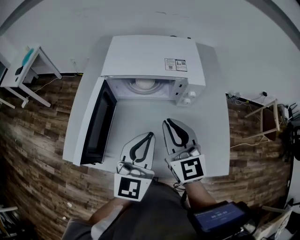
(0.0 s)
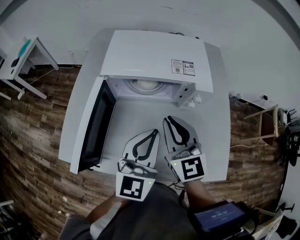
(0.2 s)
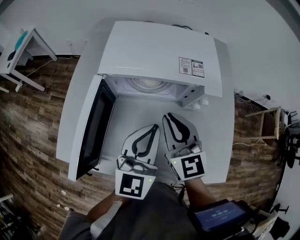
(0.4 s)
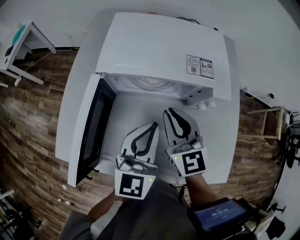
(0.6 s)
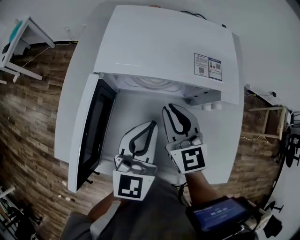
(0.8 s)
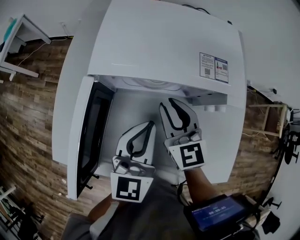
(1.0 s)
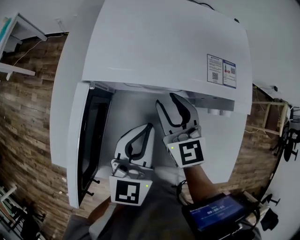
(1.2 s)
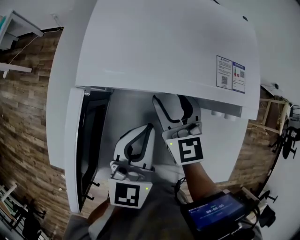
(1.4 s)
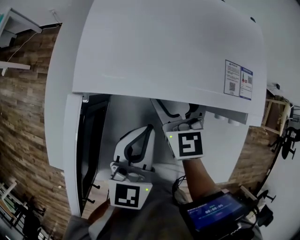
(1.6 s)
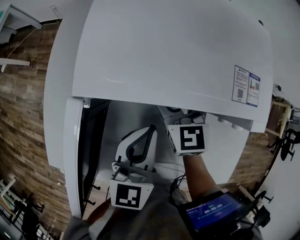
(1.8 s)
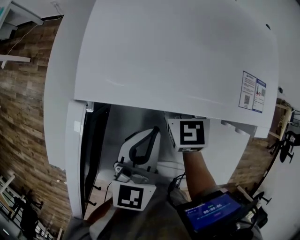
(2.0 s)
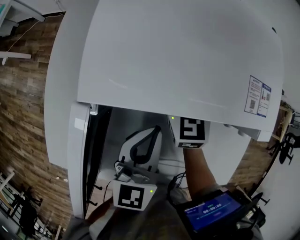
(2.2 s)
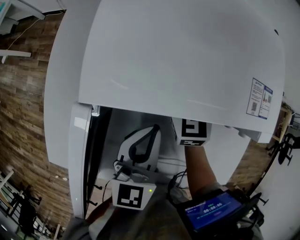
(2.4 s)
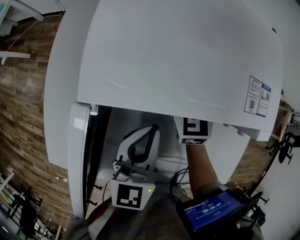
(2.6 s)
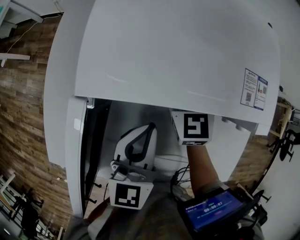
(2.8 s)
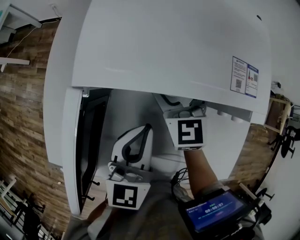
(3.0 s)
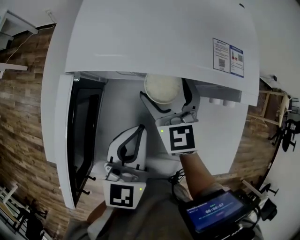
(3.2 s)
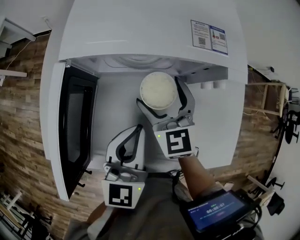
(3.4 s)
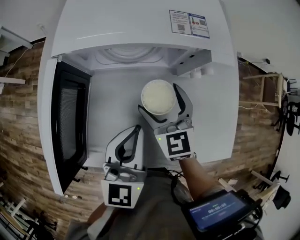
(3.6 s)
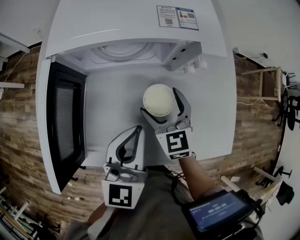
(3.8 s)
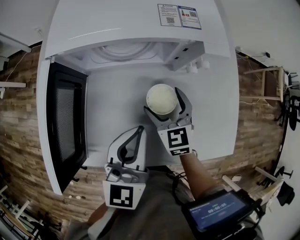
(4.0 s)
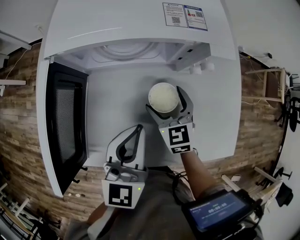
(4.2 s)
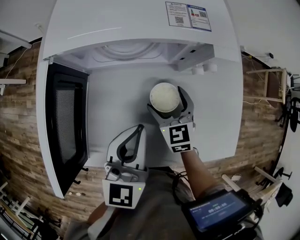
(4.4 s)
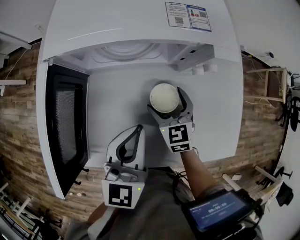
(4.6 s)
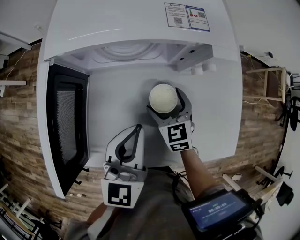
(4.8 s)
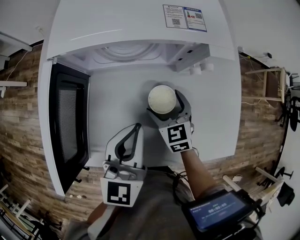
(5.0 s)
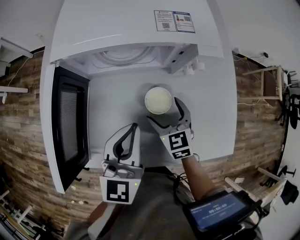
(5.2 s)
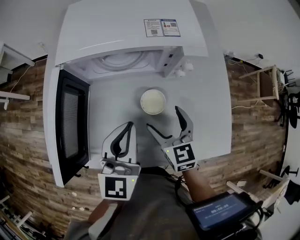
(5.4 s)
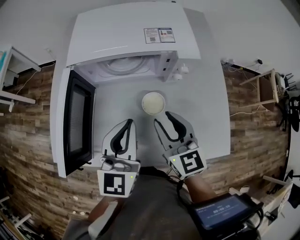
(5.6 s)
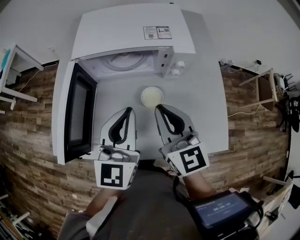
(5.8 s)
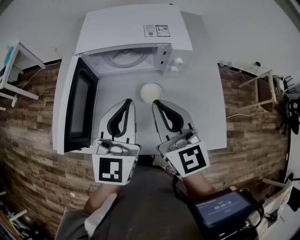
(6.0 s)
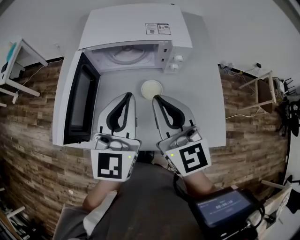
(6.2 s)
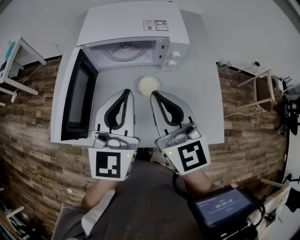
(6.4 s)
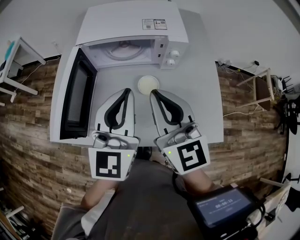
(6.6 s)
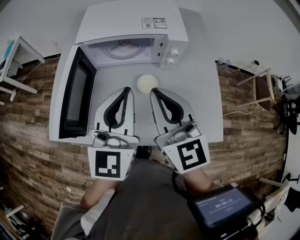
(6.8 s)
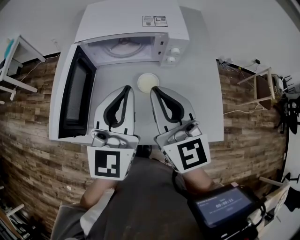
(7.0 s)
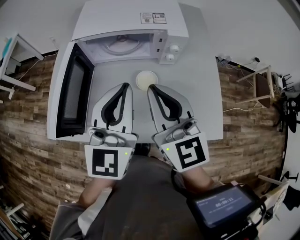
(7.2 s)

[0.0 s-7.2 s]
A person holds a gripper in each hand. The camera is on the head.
0.0 to 1.4 s: The two grippers go roughly 20 cm forward and downward. The right gripper opens up.
1.4 to 2.8 s: The right gripper moves forward, approximately 10 cm, and opens its fingers.
2.8 to 4.4 s: The left gripper is displaced backward and to the right by some 15 cm, while the right gripper moves backward and to the right, some 20 cm.
4.4 to 5.8 s: The left gripper moves upward, roughly 10 cm; the right gripper shifts about 25 cm upward and backward, turns by roughly 30 degrees, and closes its fingers.
5.8 to 7.2 s: Both grippers travel together upward, approximately 5 cm.

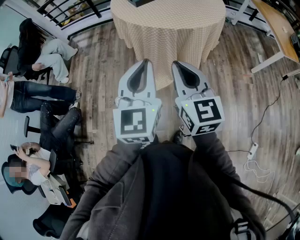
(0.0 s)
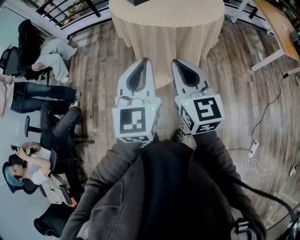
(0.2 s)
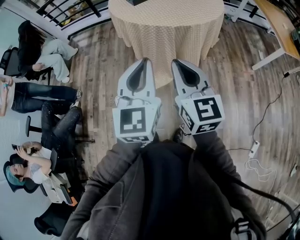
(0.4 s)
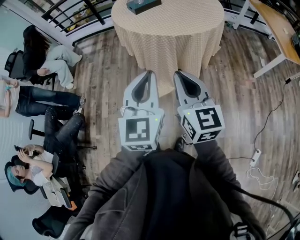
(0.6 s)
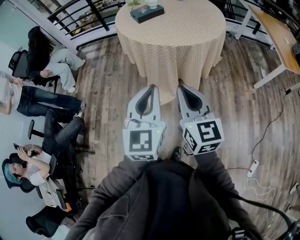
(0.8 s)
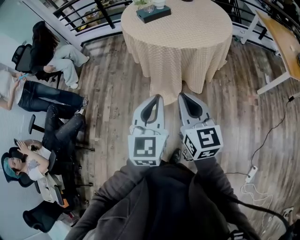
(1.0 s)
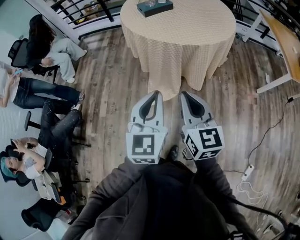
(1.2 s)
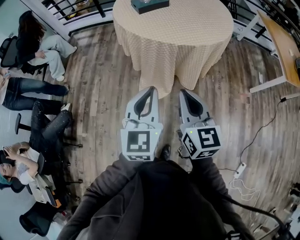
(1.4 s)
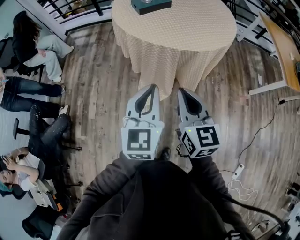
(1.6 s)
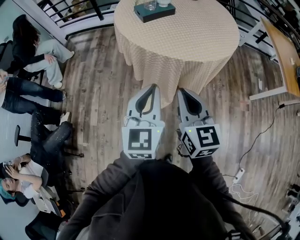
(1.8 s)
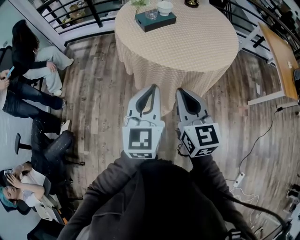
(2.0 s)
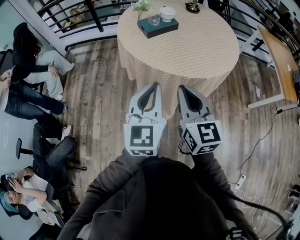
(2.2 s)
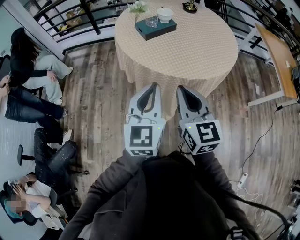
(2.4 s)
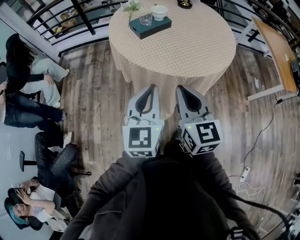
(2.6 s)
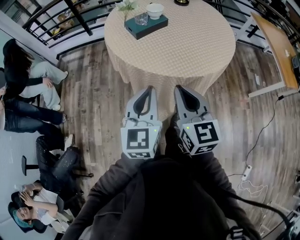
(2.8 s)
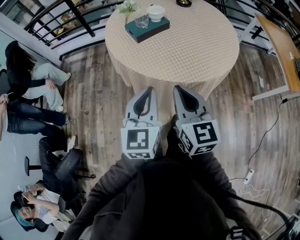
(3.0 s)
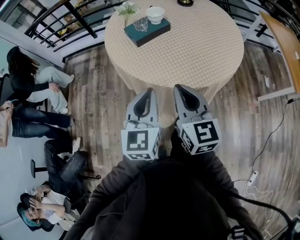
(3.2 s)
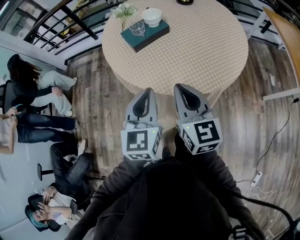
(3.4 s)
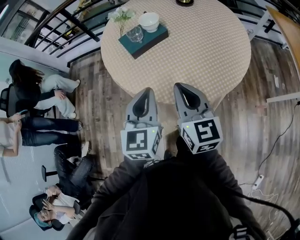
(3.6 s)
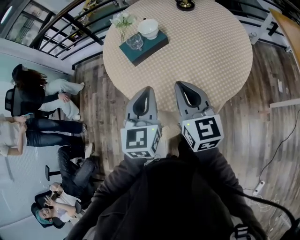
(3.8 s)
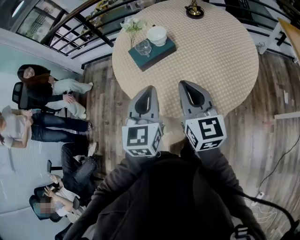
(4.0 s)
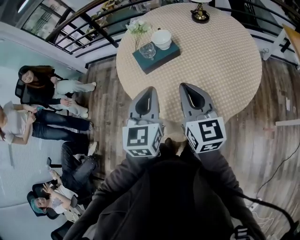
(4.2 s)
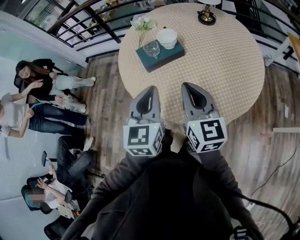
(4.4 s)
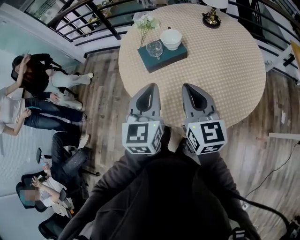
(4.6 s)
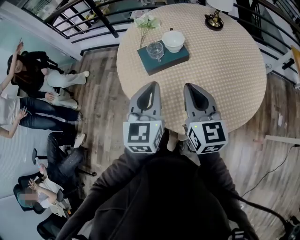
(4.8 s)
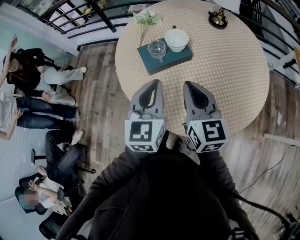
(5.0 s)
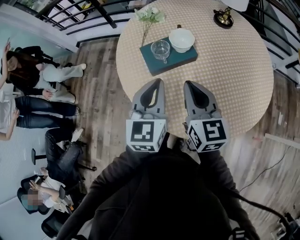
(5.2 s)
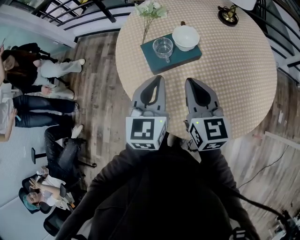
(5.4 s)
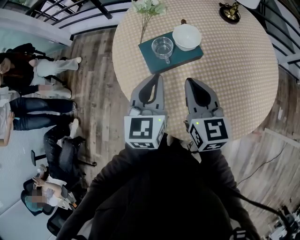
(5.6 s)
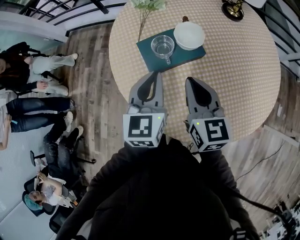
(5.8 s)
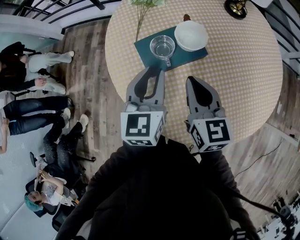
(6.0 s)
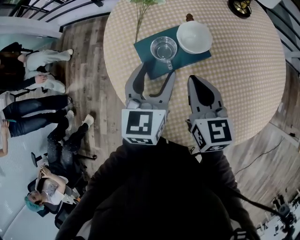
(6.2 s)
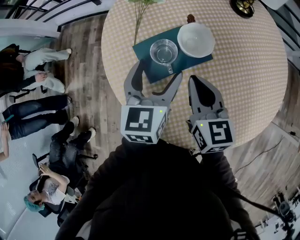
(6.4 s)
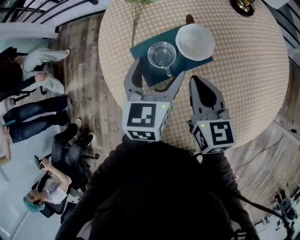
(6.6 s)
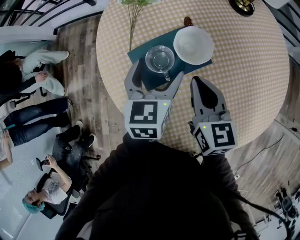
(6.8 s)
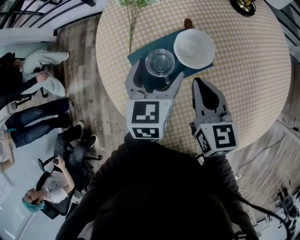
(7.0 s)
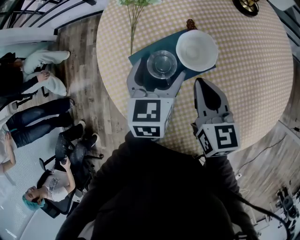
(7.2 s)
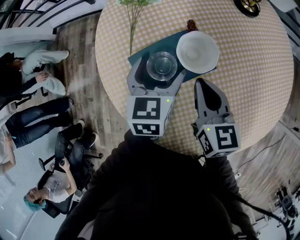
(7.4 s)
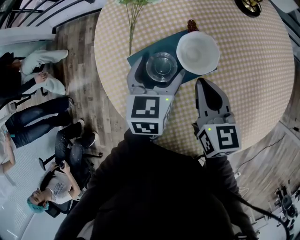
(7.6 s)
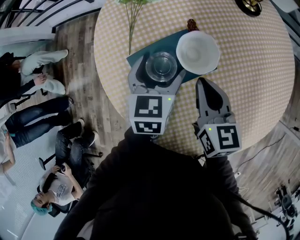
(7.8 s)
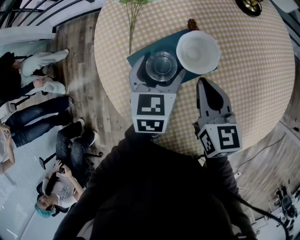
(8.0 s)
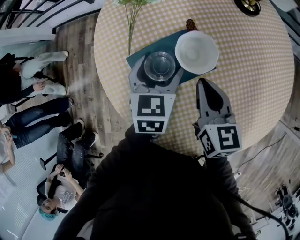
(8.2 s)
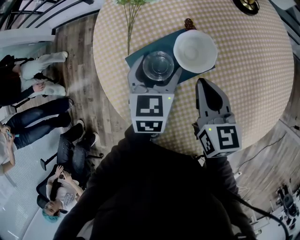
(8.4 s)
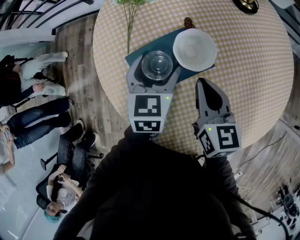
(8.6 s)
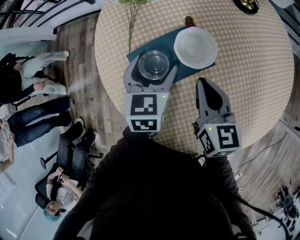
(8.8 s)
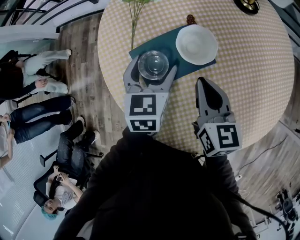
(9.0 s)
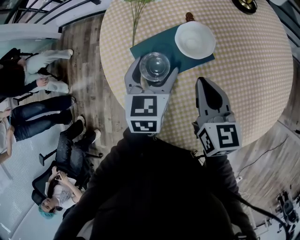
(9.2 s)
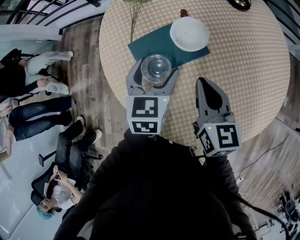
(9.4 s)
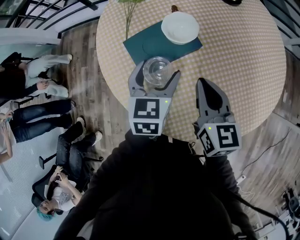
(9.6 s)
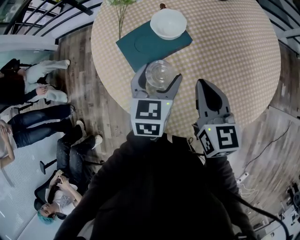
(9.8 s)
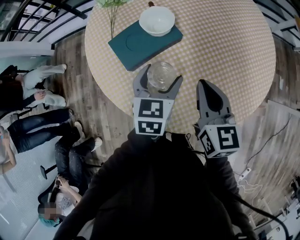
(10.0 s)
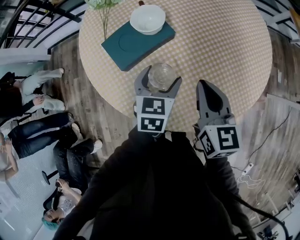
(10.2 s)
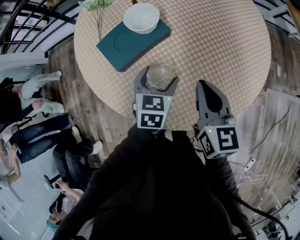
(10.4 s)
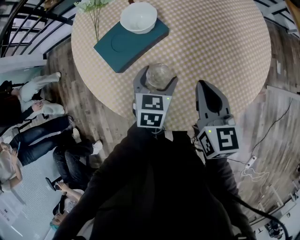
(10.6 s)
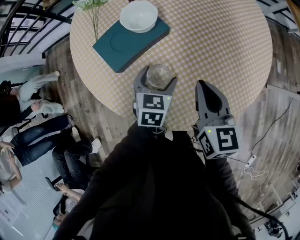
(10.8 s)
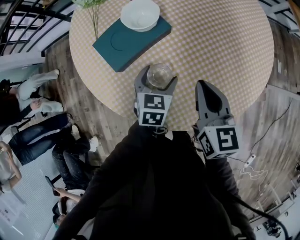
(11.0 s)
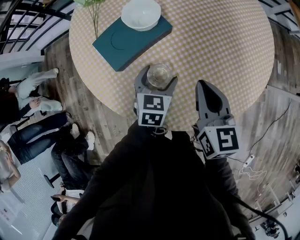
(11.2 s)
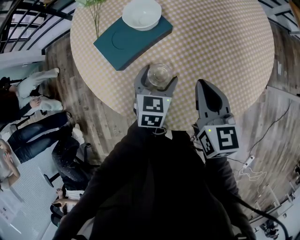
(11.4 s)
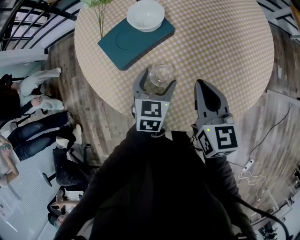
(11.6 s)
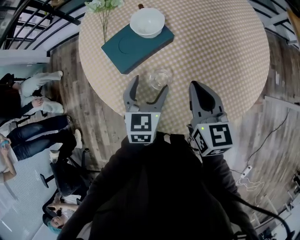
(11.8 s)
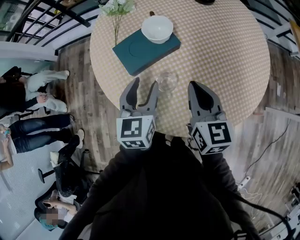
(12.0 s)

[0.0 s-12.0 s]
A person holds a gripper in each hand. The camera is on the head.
0.0 to 1.6 s: The two grippers go roughly 15 cm forward and downward.
1.6 to 3.0 s: The grippers both shift forward by some 20 cm.
3.0 to 4.4 s: The two grippers go roughly 20 cm forward and to the right.
4.4 to 6.0 s: Both grippers move forward and downward, approximately 25 cm.
6.0 to 7.6 s: The grippers both shift forward and downward by some 10 cm. The left gripper opens.
7.6 to 9.0 s: The grippers stay close to where they were, moving slightly.
9.0 to 10.4 s: The grippers both shift backward and to the right by some 20 cm.
10.4 to 12.0 s: The left gripper heads upward and to the left, covering approximately 10 cm, and changes its angle by roughly 20 degrees.

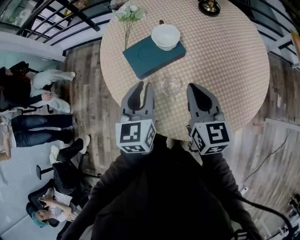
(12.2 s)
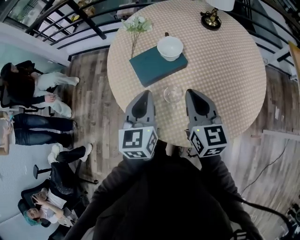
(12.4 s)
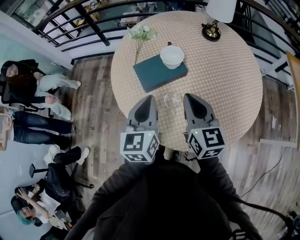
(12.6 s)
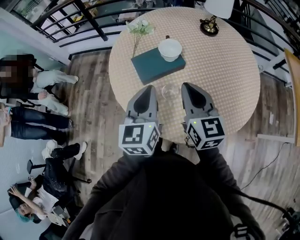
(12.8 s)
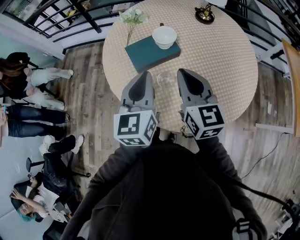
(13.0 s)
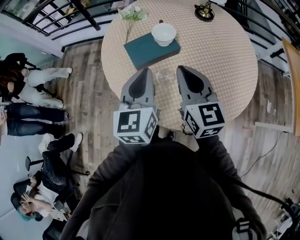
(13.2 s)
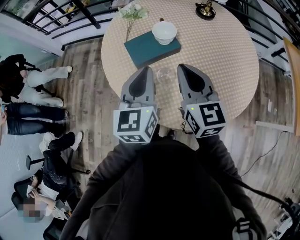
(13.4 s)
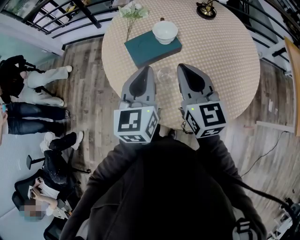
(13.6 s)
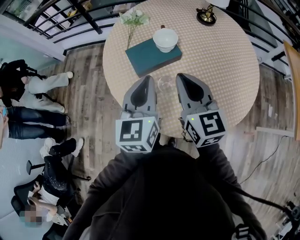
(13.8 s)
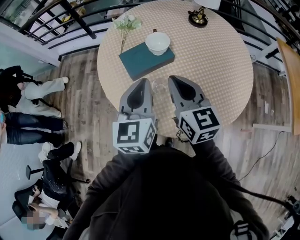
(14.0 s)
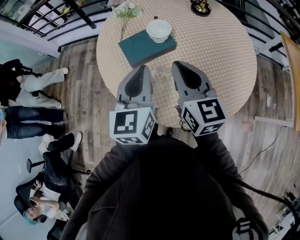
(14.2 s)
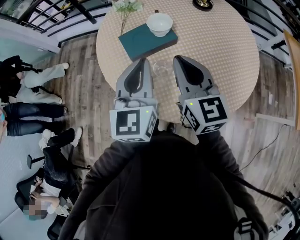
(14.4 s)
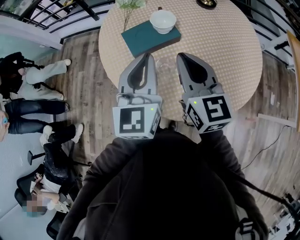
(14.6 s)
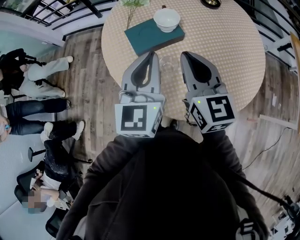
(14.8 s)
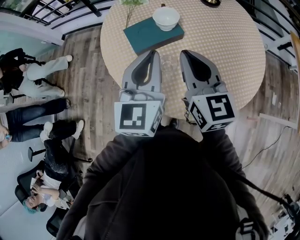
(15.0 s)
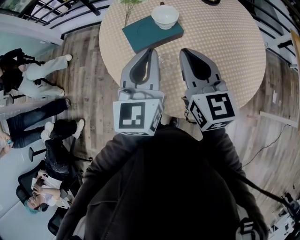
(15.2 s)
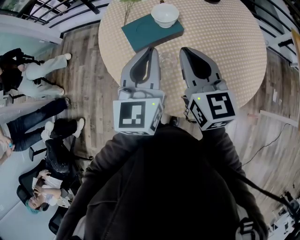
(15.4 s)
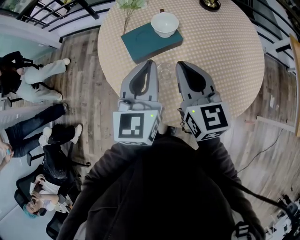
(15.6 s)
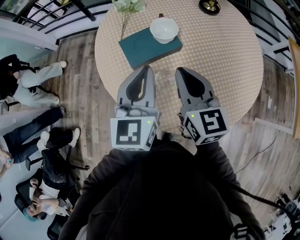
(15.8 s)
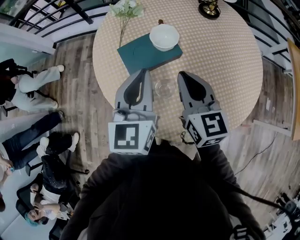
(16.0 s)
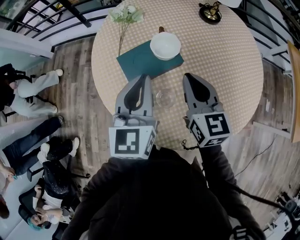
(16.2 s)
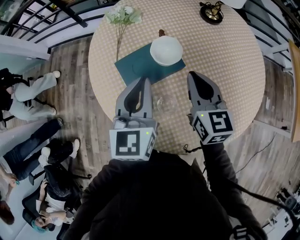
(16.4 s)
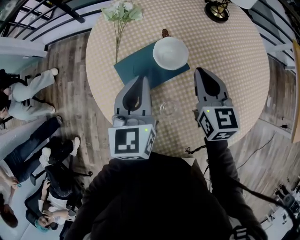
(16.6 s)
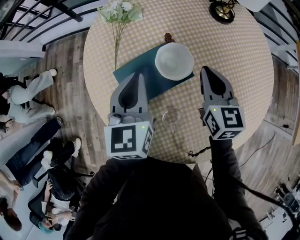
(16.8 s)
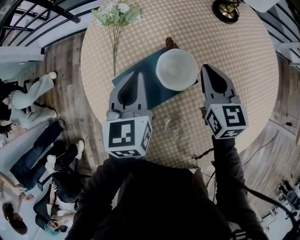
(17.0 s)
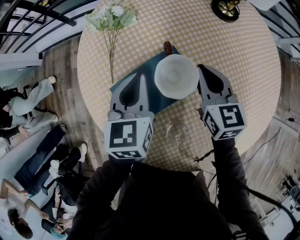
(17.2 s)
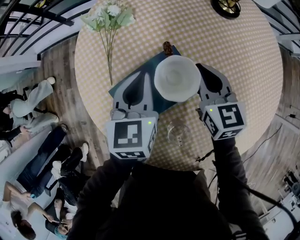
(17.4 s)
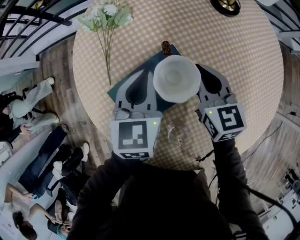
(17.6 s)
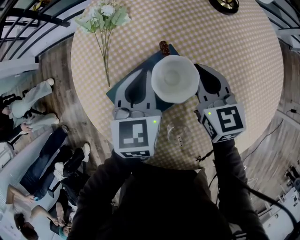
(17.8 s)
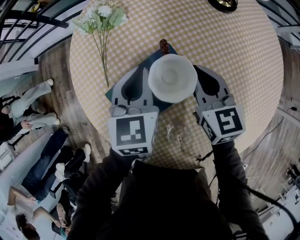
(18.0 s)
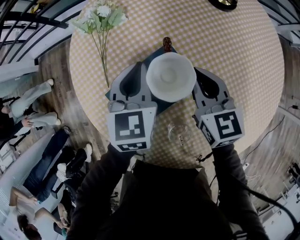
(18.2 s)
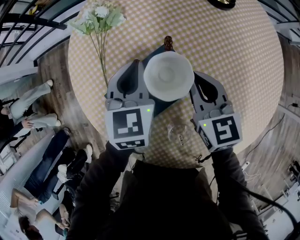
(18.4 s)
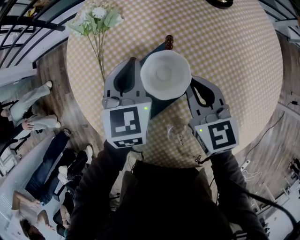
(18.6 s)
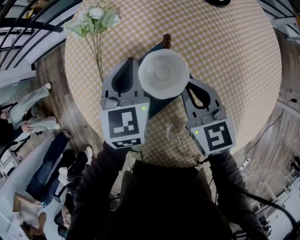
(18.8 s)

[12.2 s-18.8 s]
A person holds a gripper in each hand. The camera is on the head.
12.2 to 13.8 s: Both grippers travel together upward, some 5 cm.
13.8 to 15.4 s: The grippers stay close to where they were, moving slightly.
15.4 to 17.2 s: Both grippers travel together forward and downward, roughly 30 cm. The left gripper swivels roughly 30 degrees. Meanwhile the right gripper swivels approximately 20 degrees.
17.2 to 18.8 s: The right gripper moves about 5 cm; the left gripper shifts by approximately 5 cm.
